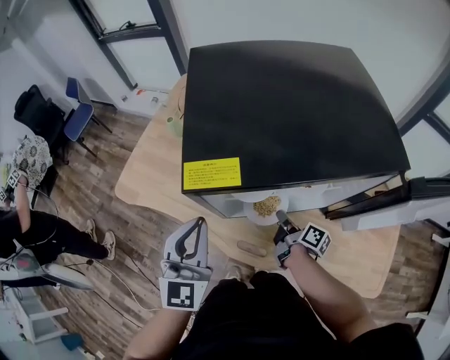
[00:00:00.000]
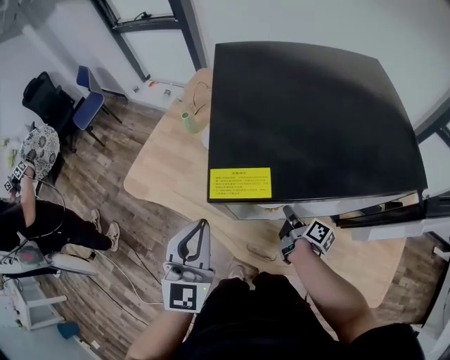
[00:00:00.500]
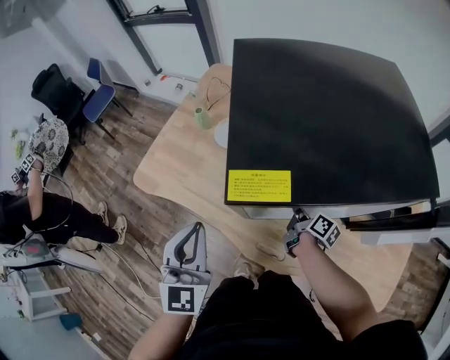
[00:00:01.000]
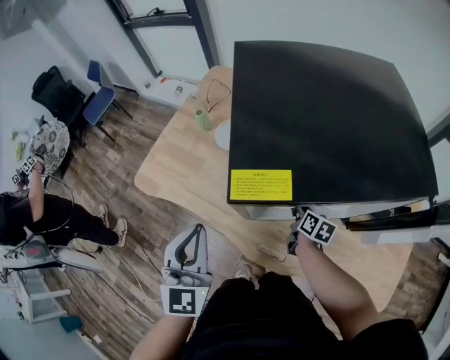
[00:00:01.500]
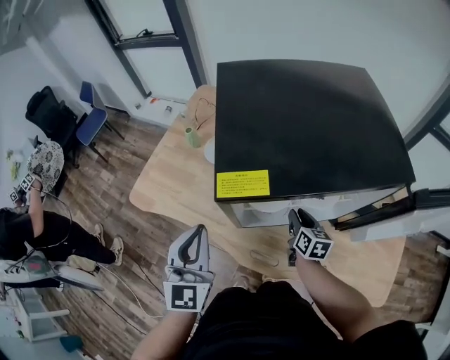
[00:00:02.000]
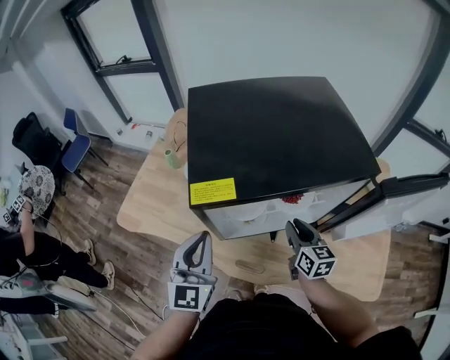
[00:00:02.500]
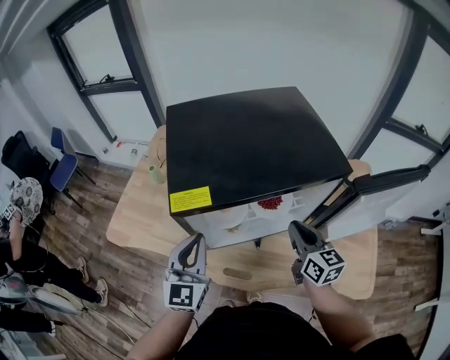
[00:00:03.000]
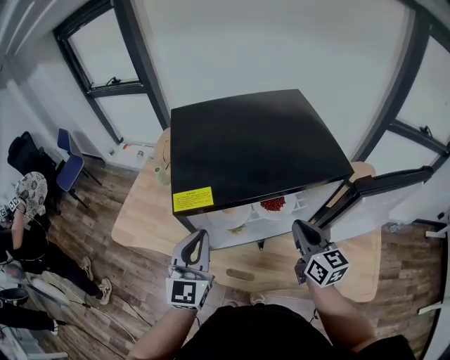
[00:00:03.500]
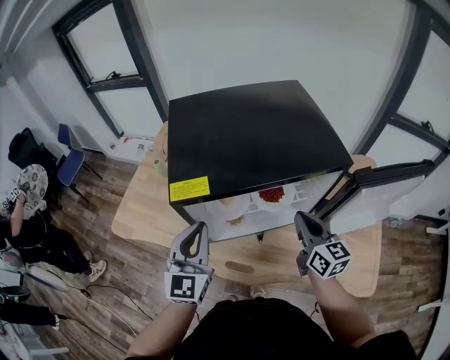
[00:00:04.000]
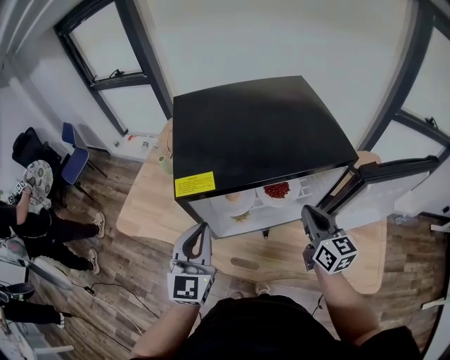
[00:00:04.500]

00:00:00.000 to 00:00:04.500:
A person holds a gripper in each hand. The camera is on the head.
00:00:00.000 to 00:00:02.000: The right gripper twists some 50 degrees counterclockwise, seen from behind, and opens.
00:00:02.000 to 00:00:04.500: The right gripper is displaced upward and to the right by roughly 20 cm, rotates roughly 30 degrees, and closes up. The left gripper heads to the right, covering about 10 cm.

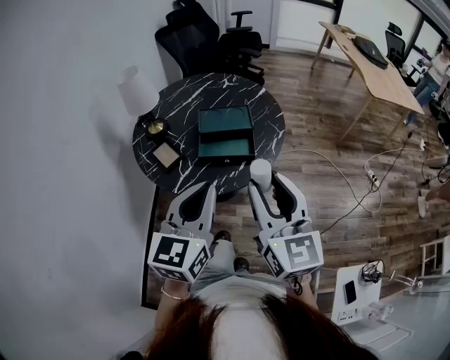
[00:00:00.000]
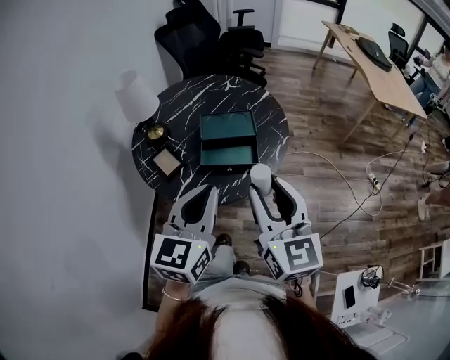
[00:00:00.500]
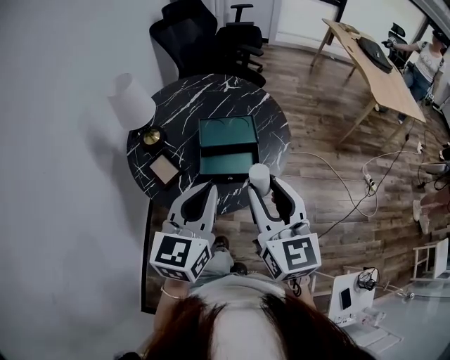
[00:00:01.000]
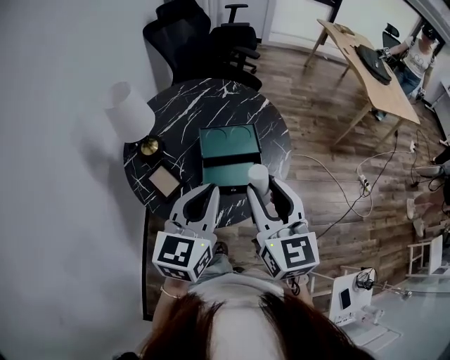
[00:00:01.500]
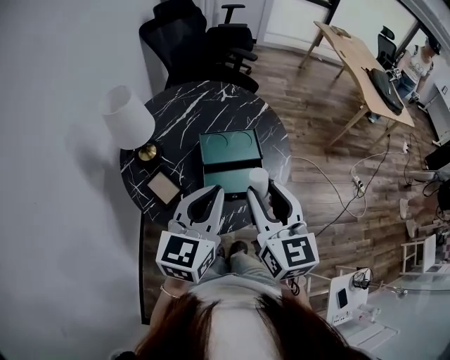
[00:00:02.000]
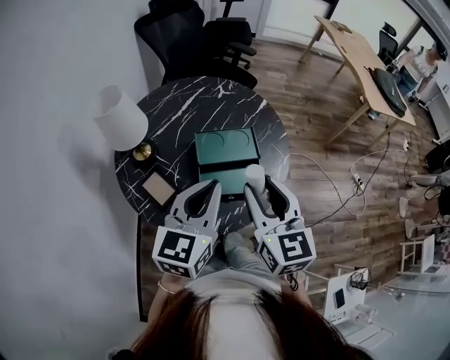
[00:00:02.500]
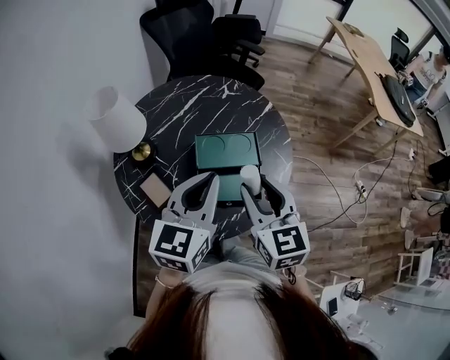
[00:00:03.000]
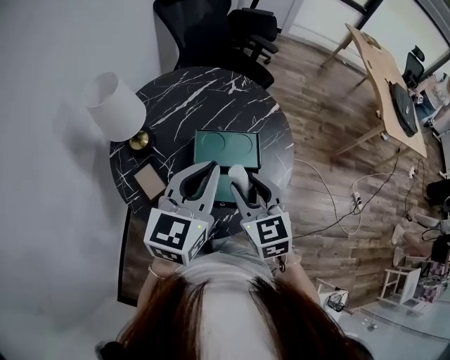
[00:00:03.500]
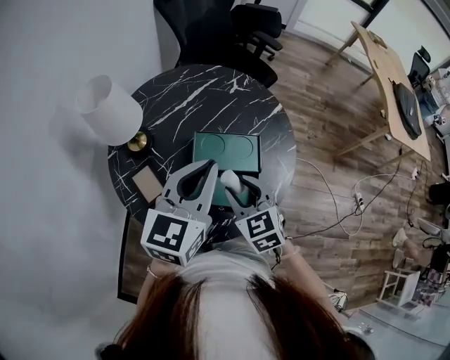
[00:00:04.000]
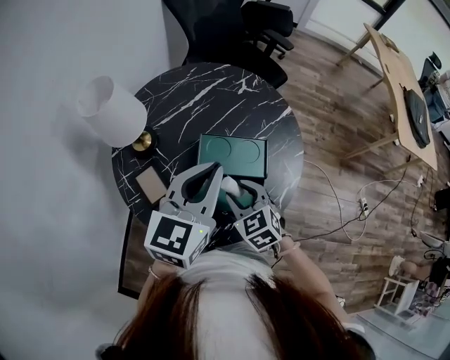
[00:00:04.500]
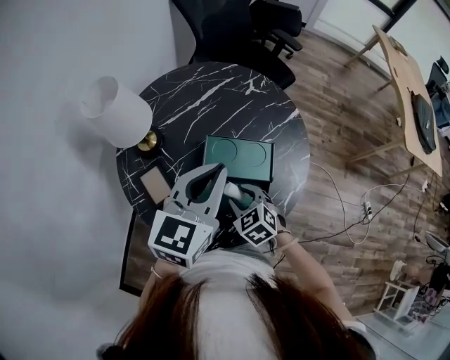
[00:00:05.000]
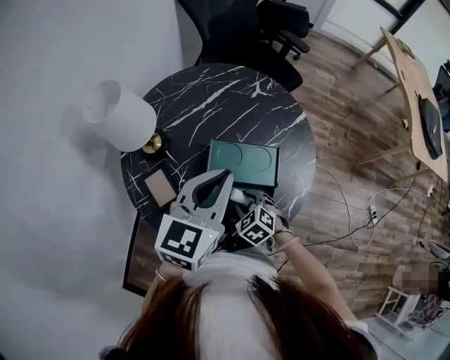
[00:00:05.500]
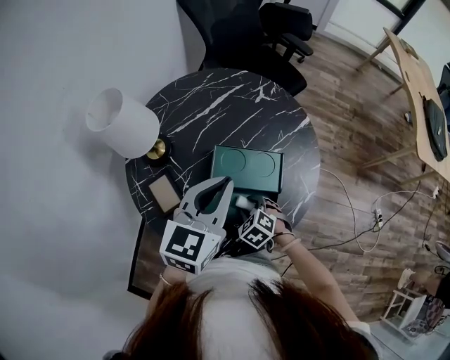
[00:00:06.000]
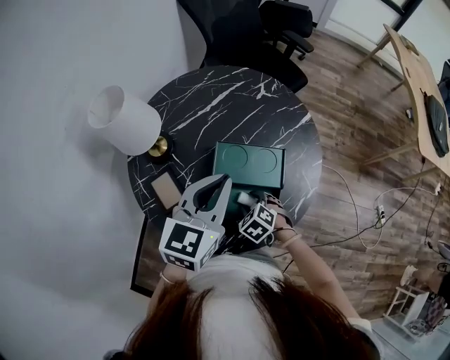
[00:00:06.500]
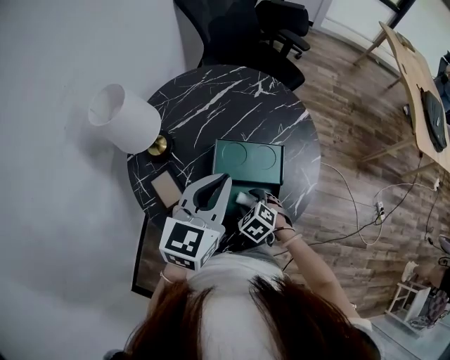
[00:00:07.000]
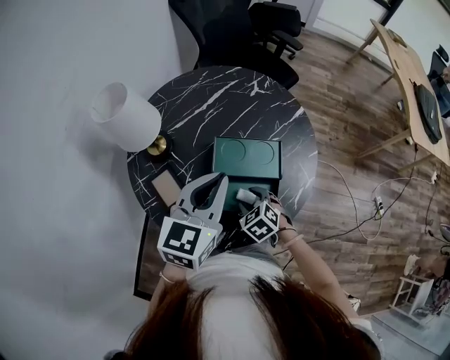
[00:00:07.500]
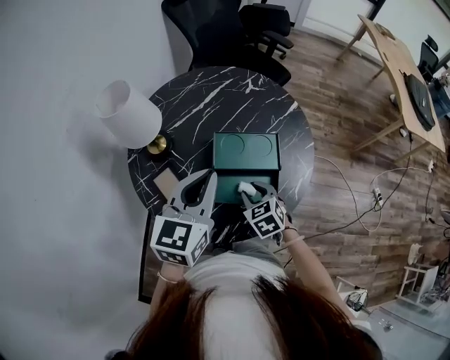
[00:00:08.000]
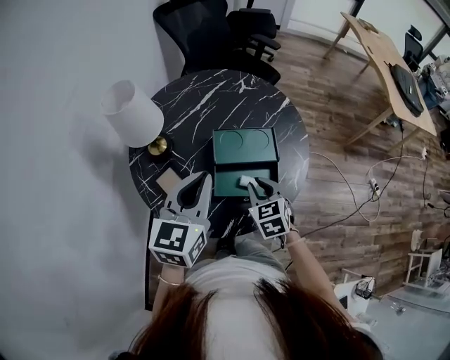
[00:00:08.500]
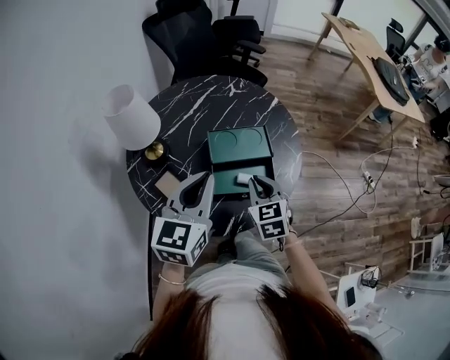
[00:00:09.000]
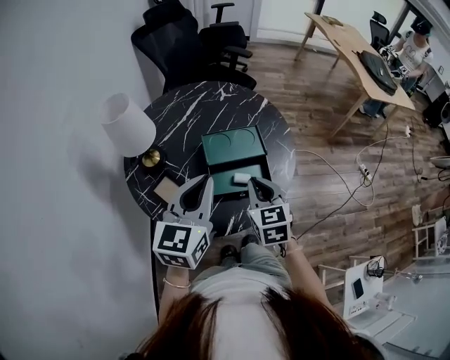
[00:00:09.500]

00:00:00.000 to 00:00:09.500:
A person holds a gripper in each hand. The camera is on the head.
00:00:00.000 to 00:00:02.000: The left gripper moves forward, about 20 cm; the right gripper travels forward and to the left by approximately 20 cm.
00:00:02.000 to 00:00:04.000: The right gripper heads downward and forward, covering about 20 cm, and swivels approximately 40 degrees. The left gripper shifts roughly 15 cm forward.
00:00:04.000 to 00:00:05.500: The right gripper heads downward, covering approximately 15 cm, and rotates some 30 degrees.
00:00:05.500 to 00:00:07.500: There are only small adjustments of the grippers.
00:00:07.500 to 00:00:09.500: The left gripper shifts roughly 10 cm backward. Meanwhile the right gripper travels upward by roughly 20 cm, tips its fingers upward by some 30 degrees, and closes its fingers.

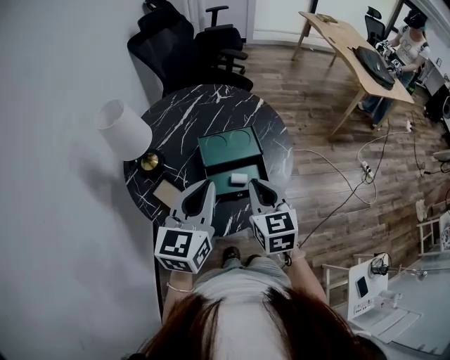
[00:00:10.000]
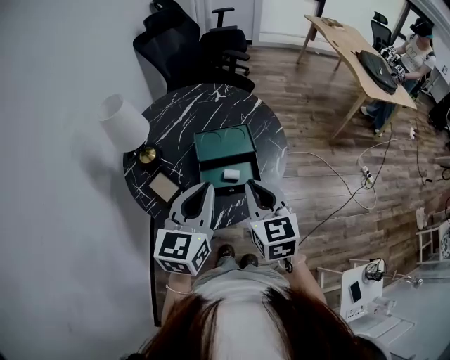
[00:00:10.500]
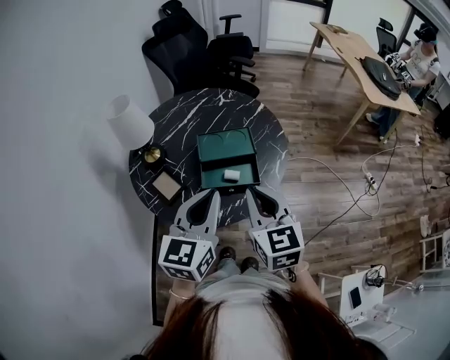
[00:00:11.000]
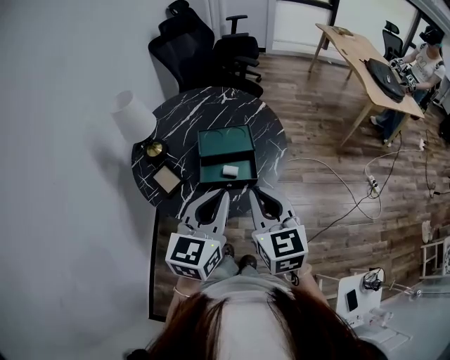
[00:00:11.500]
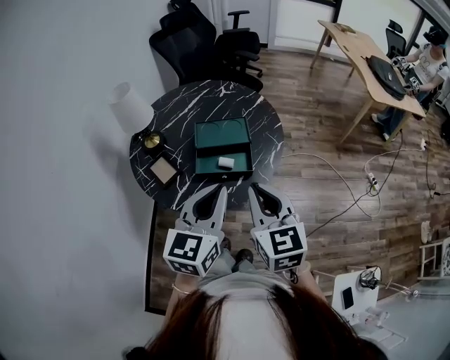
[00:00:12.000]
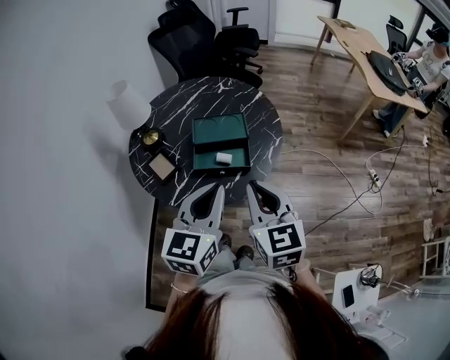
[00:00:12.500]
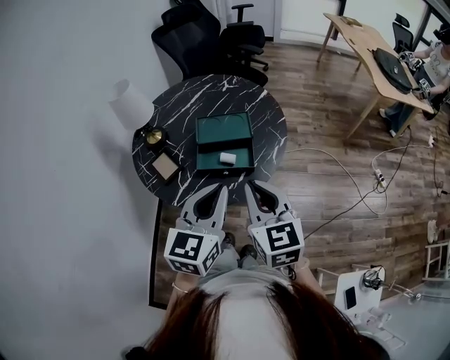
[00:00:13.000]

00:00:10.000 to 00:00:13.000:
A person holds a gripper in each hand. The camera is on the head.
00:00:10.000 to 00:00:11.500: The right gripper travels backward, upward and to the right by some 15 cm. The left gripper heads to the right and backward, covering about 15 cm.
00:00:11.500 to 00:00:13.000: The grippers stay close to where they were, moving slightly.

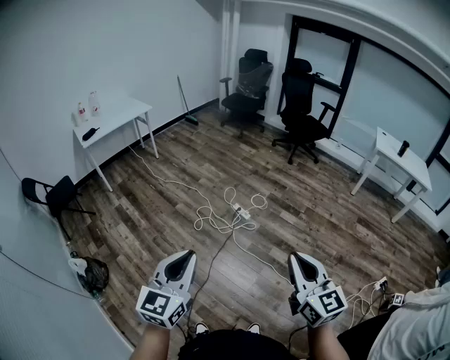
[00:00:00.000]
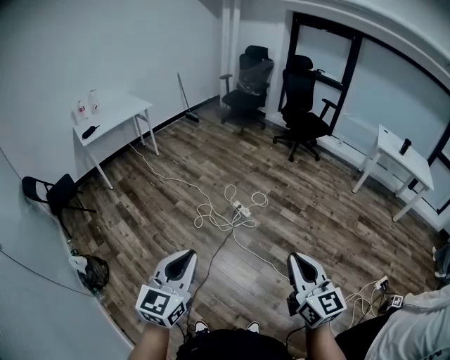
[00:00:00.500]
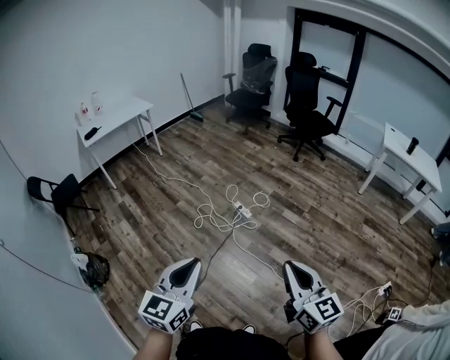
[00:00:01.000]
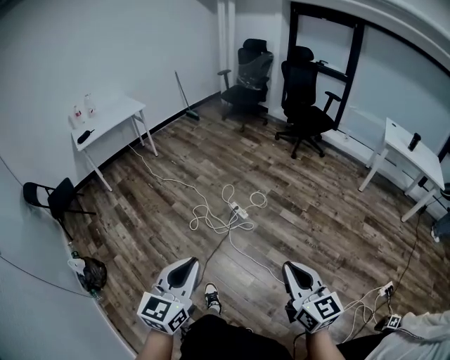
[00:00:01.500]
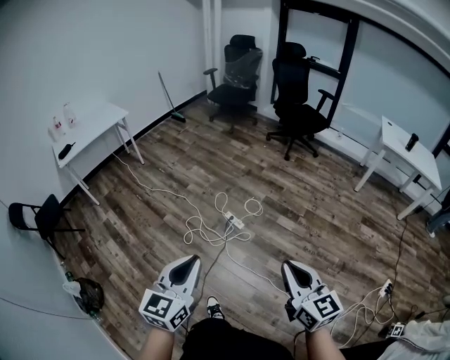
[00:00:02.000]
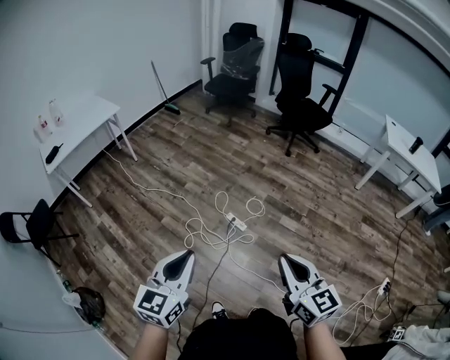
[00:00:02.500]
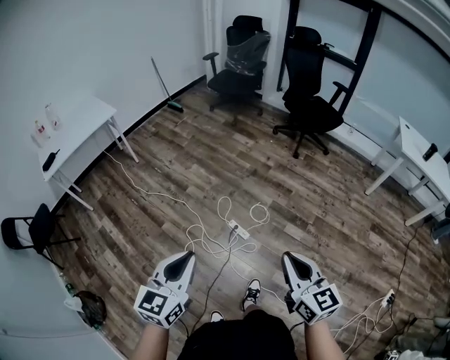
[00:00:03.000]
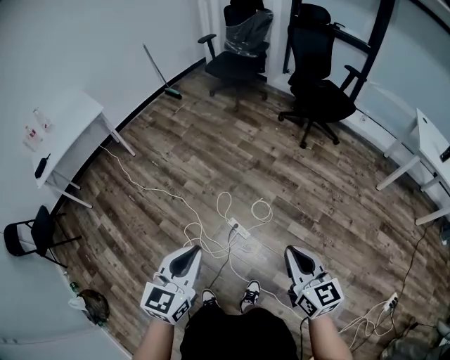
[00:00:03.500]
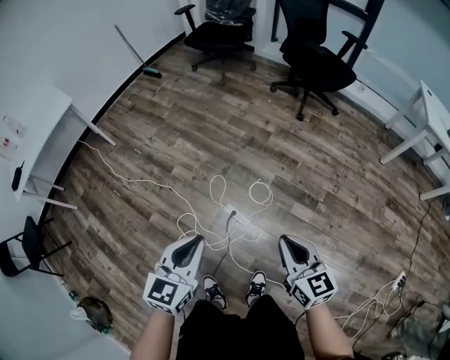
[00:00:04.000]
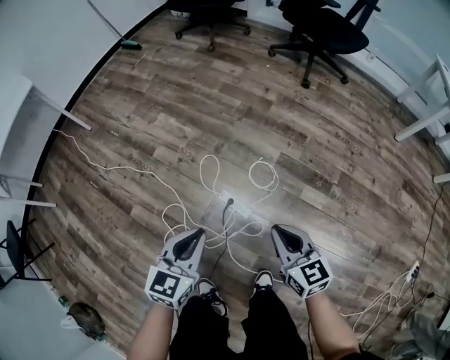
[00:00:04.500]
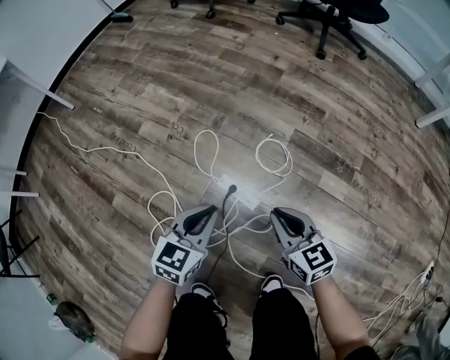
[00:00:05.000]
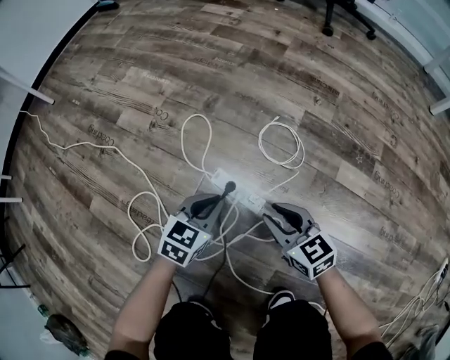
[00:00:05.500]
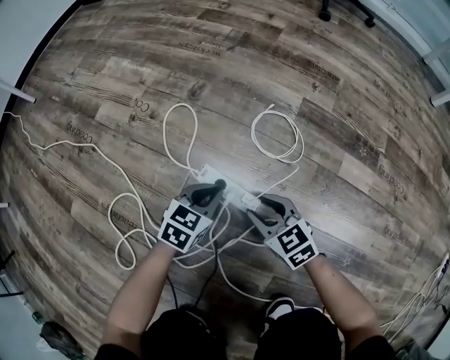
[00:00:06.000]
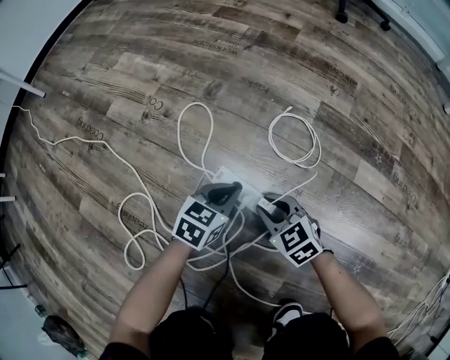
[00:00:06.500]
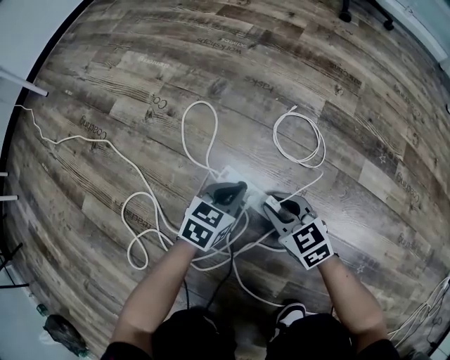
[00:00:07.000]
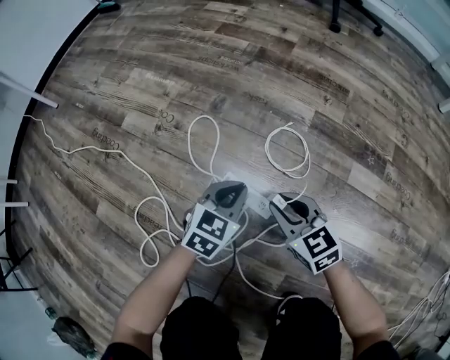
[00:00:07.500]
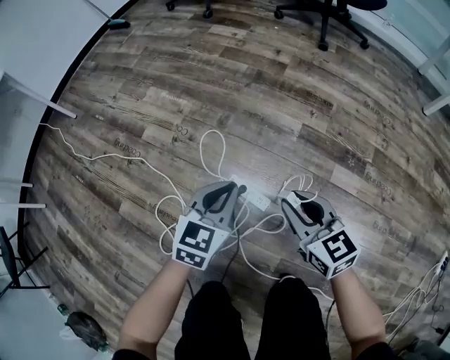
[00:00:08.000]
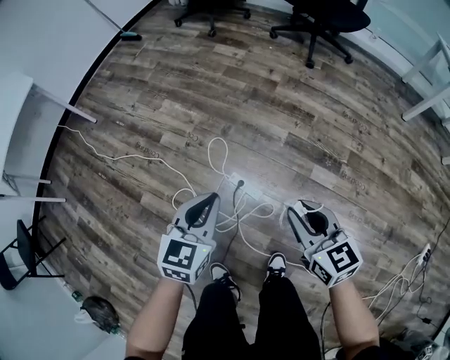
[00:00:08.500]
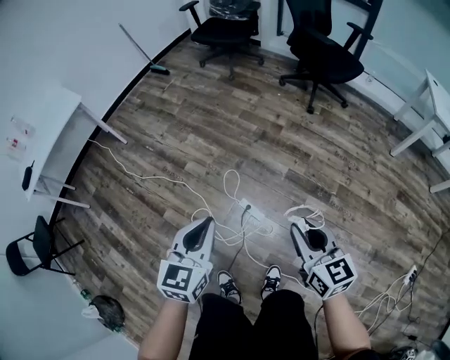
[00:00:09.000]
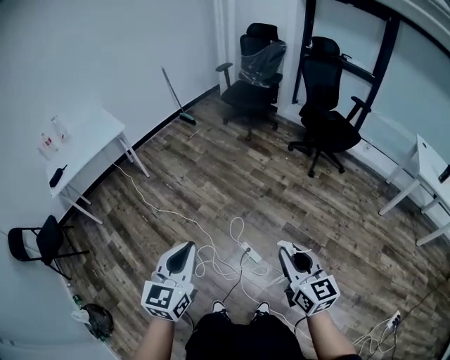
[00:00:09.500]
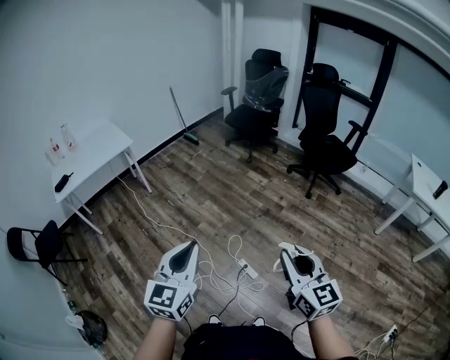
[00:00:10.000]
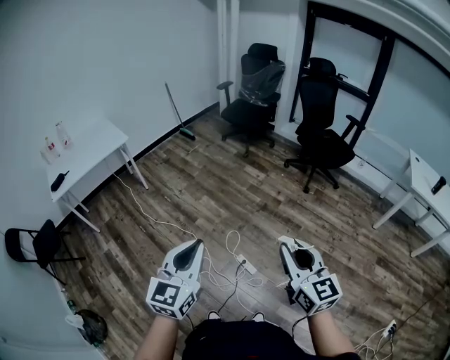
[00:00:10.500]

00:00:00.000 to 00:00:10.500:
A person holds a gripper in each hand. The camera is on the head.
00:00:00.000 to 00:00:02.000: The left gripper travels forward and to the right by approximately 30 cm, while the right gripper moves forward, some 25 cm.
00:00:02.000 to 00:00:04.000: The two grippers travel together, forward, approximately 50 cm. Both grippers travel together downward, approximately 25 cm.
00:00:04.000 to 00:00:06.500: Both grippers move downward, roughly 90 cm. The right gripper rotates approximately 40 degrees, and opens. The left gripper changes its angle by roughly 30 degrees.
00:00:06.500 to 00:00:08.500: Both grippers travel together upward, about 60 cm. The right gripper changes its angle by approximately 30 degrees; the left gripper rotates about 20 degrees.
00:00:08.500 to 00:00:10.500: Both grippers travel together upward, some 50 cm. The right gripper rotates approximately 20 degrees. The left gripper swivels about 30 degrees.
